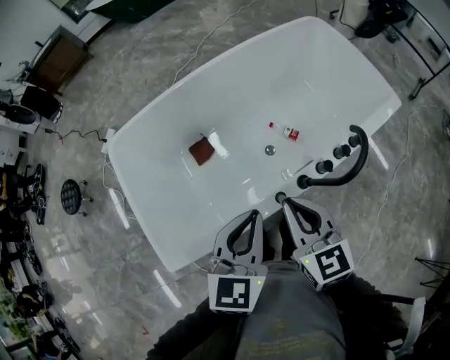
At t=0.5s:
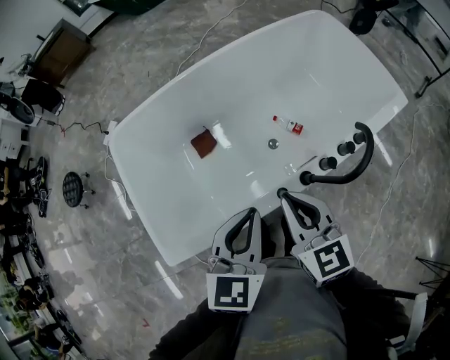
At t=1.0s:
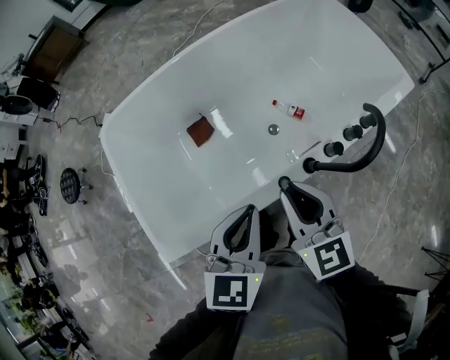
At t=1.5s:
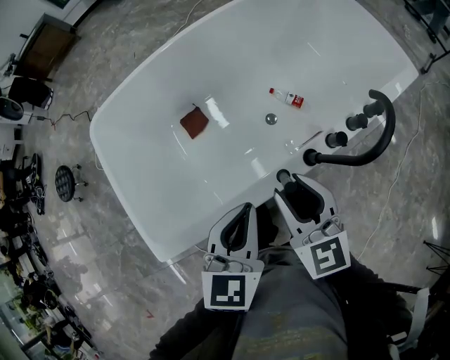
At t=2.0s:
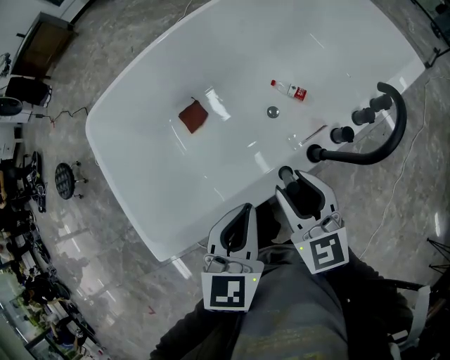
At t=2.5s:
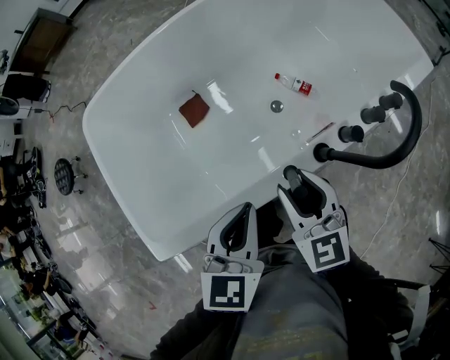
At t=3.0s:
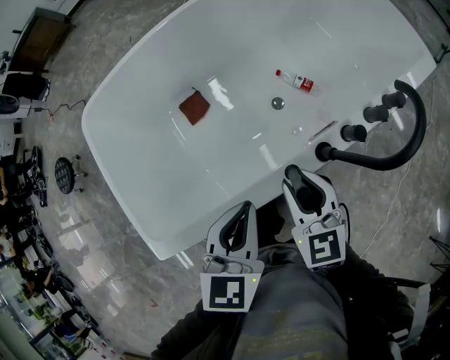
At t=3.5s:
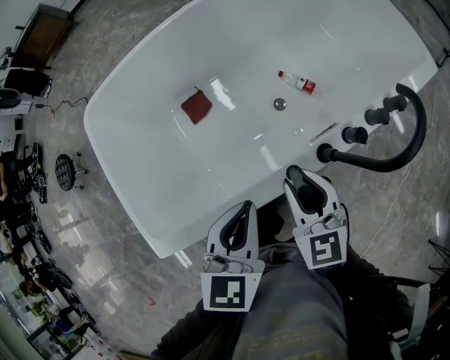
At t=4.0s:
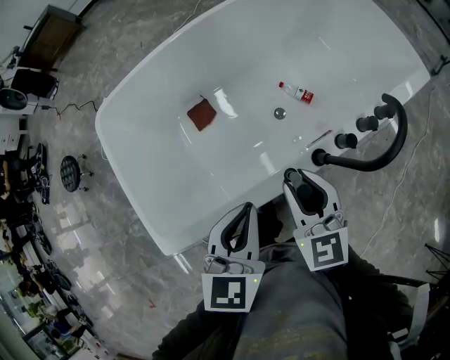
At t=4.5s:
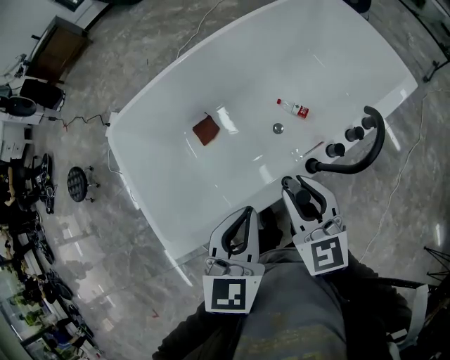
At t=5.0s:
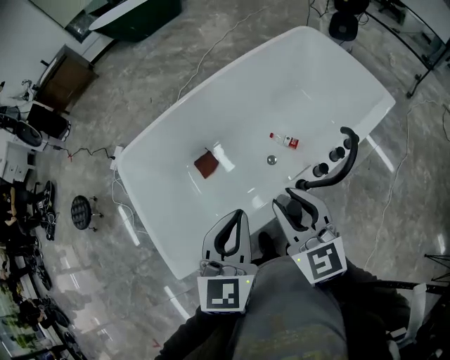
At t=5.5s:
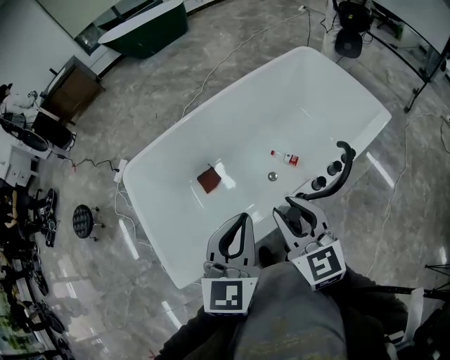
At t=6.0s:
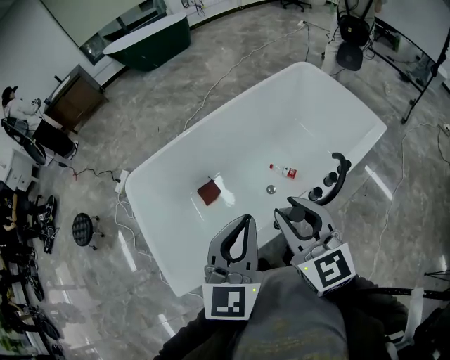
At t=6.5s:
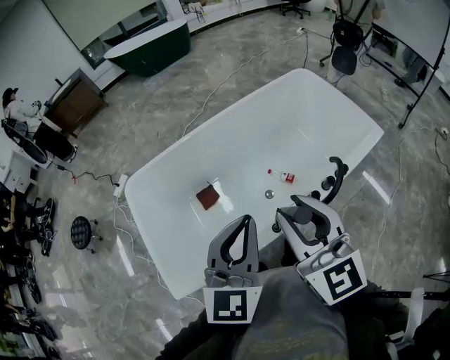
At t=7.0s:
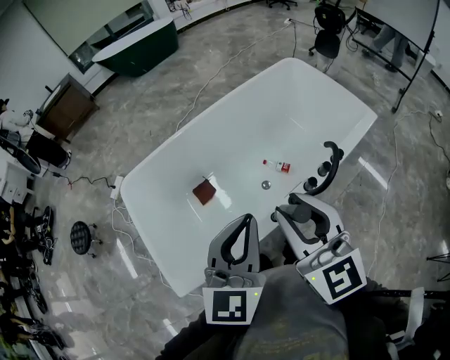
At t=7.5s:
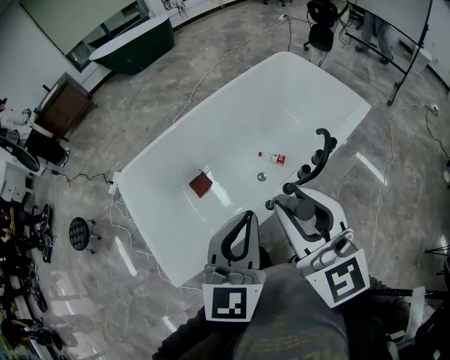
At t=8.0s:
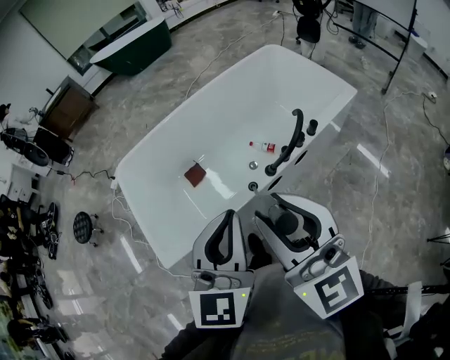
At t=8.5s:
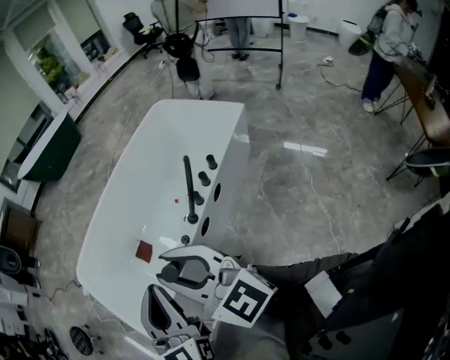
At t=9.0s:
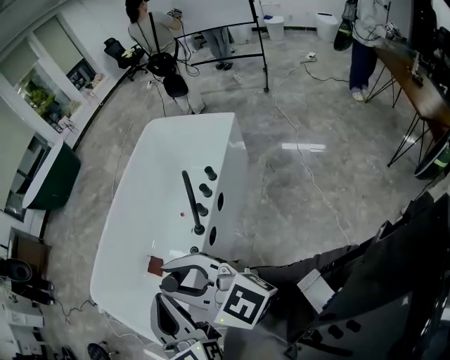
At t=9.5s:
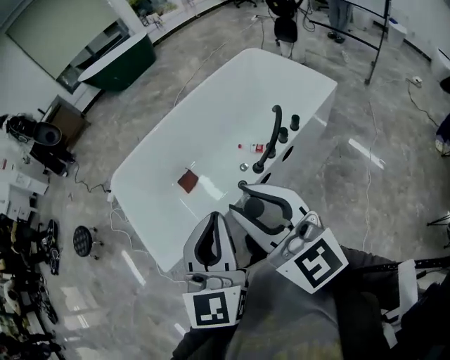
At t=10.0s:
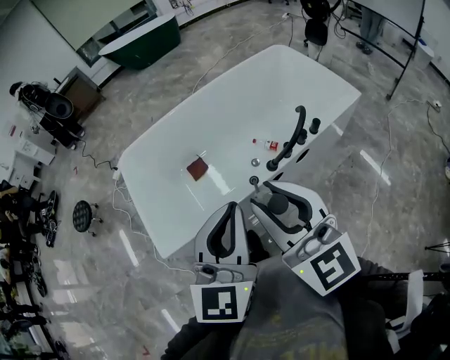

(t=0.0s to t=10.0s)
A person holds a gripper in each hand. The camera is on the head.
t=0.0s - t=2.0s: Both grippers move downward, about 15 cm. The right gripper opens its fingers.
t=2.0s - t=4.0s: The right gripper travels downward and back again, approximately 5 cm each way.
t=4.0s - t=6.0s: The grippers both shift upward by about 25 cm. The left gripper changes its angle by some 30 degrees.
t=6.0s - t=8.0s: The right gripper travels backward and upward by some 25 cm. Meanwhile the left gripper heads backward, covering approximately 20 cm.

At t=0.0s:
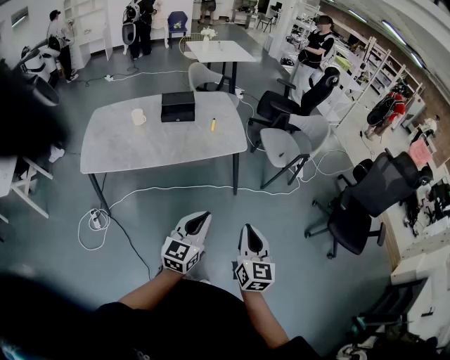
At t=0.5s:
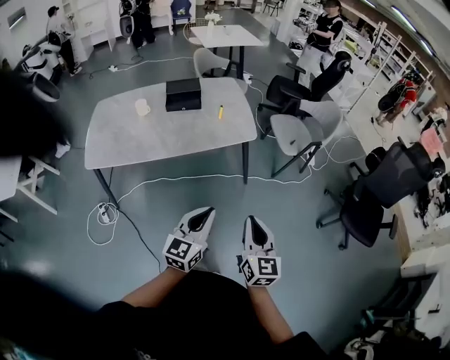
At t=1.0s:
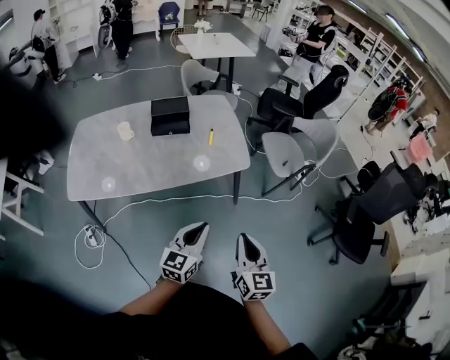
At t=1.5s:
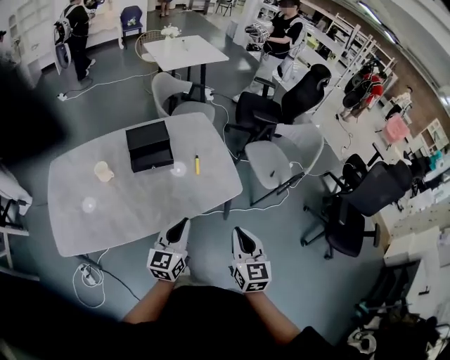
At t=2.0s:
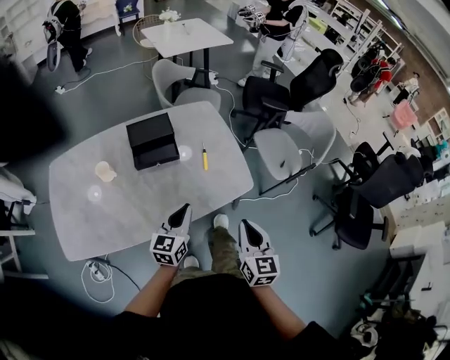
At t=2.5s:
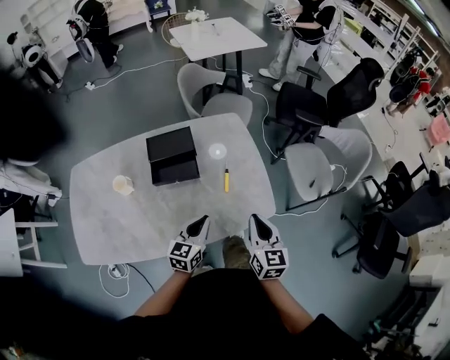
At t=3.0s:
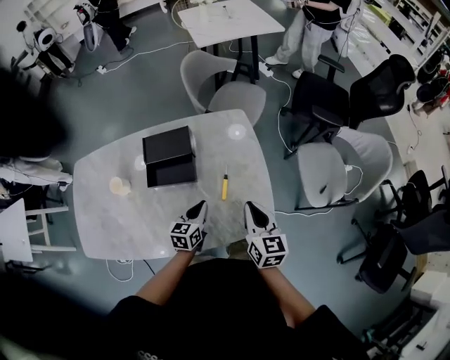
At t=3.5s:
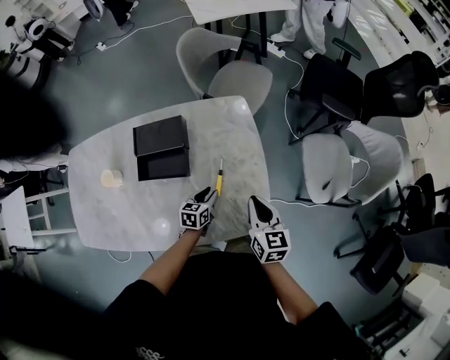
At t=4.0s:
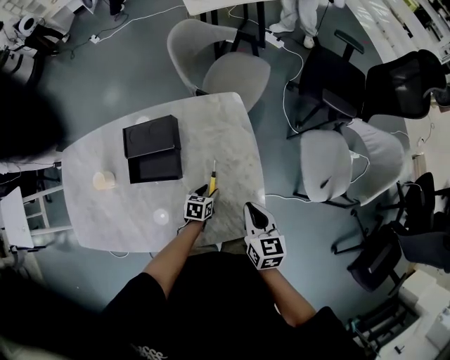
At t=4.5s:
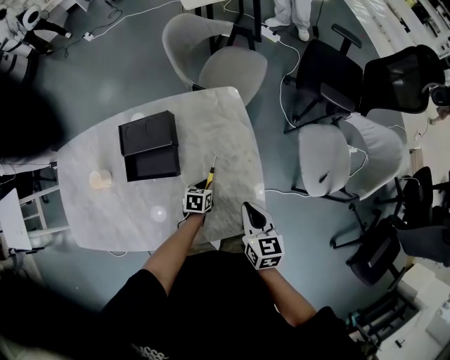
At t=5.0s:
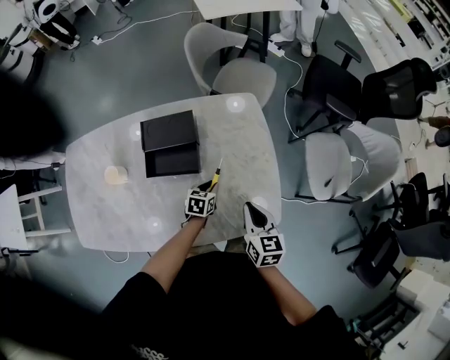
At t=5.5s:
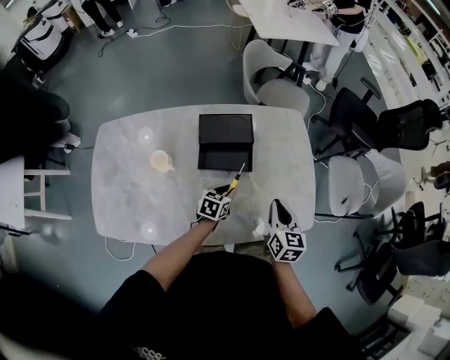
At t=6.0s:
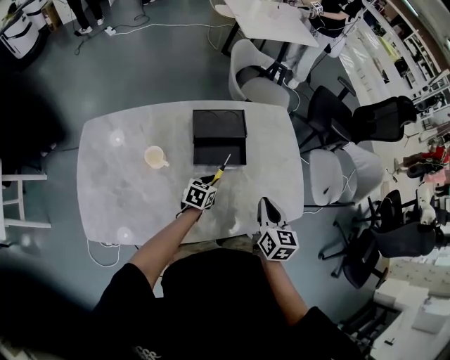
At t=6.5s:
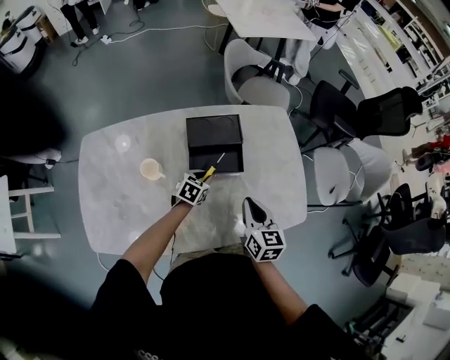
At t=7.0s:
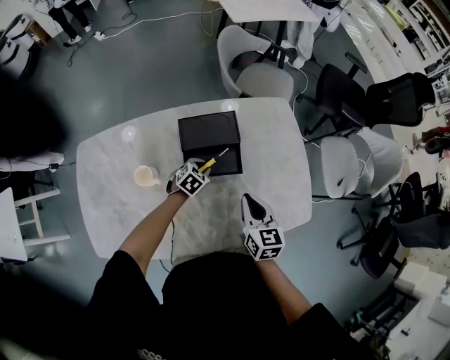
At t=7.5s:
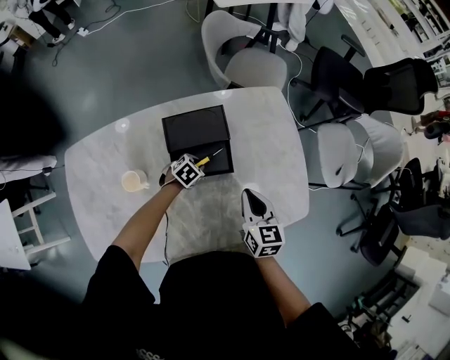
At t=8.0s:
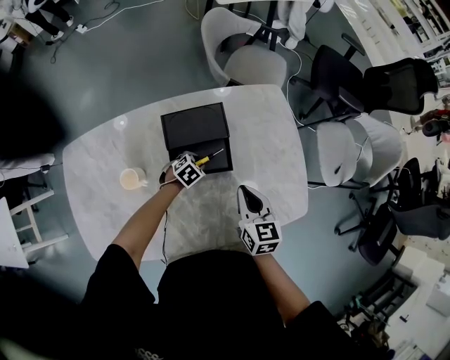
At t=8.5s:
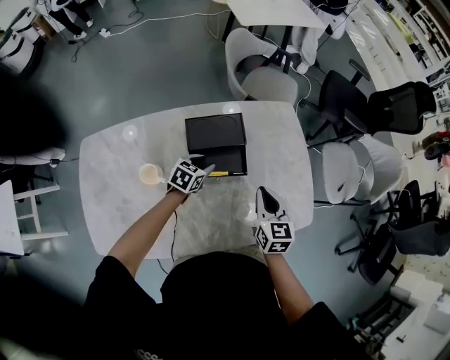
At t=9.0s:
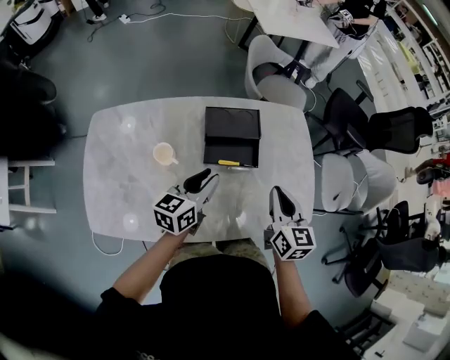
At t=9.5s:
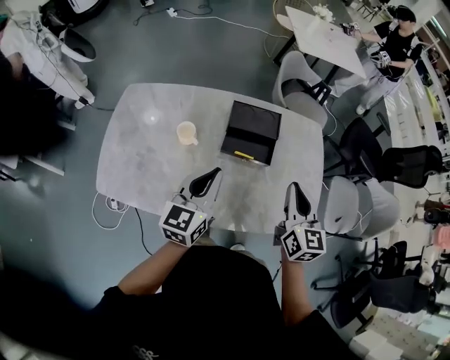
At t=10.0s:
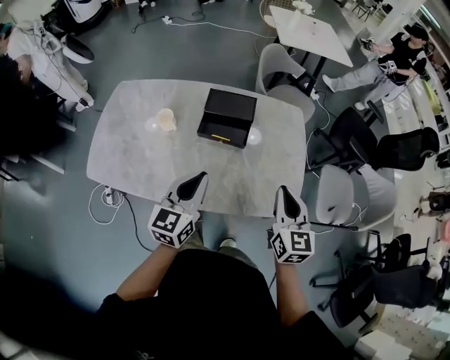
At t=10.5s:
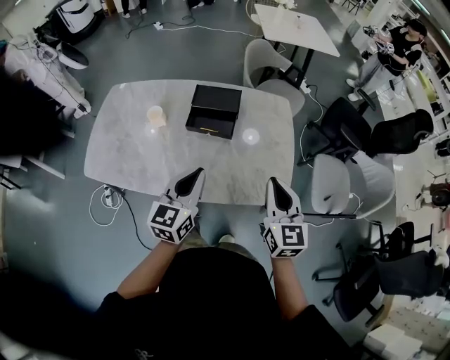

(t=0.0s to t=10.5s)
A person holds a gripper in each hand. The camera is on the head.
t=0.0s - t=2.0s: Both grippers are carried forward and to the left, some 50 cm.
t=2.0s - t=4.0s: The right gripper heads forward, covering some 40 cm, and changes its angle by some 30 degrees. The left gripper moves forward and downward, about 40 cm, angles its fingers downward, by approximately 50 degrees, and opens.
t=4.0s - t=6.5s: The left gripper goes approximately 30 cm to the left, rotates about 20 degrees, and closes its fingers. The right gripper goes roughly 35 cm to the left and backward.
t=6.5s - t=8.5s: Both grippers travel together forward, some 10 cm. The left gripper moves roughly 10 cm downward and comes back.
t=8.5s - t=10.5s: The right gripper changes place by some 30 cm, and changes its angle by about 20 degrees; the left gripper ends up about 40 cm from where it was, tips its fingers upward by approximately 30 degrees, and closes.

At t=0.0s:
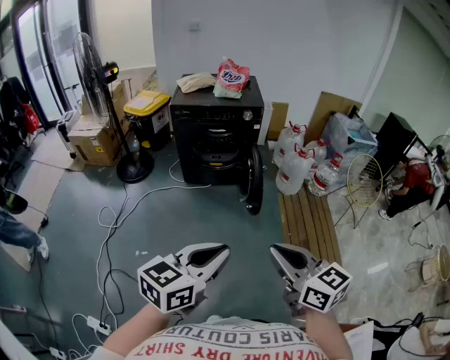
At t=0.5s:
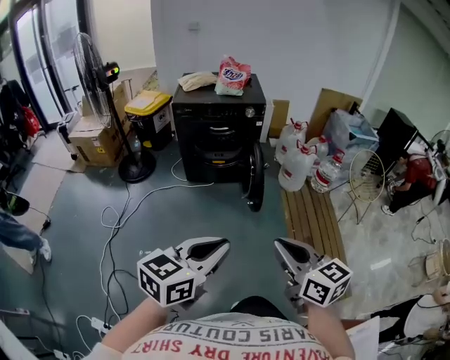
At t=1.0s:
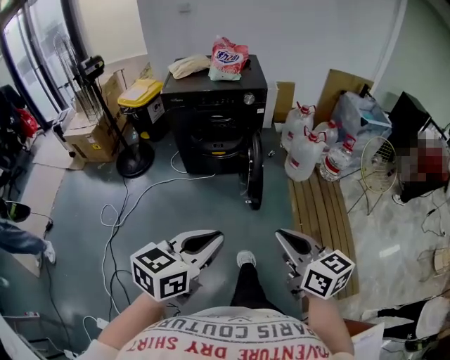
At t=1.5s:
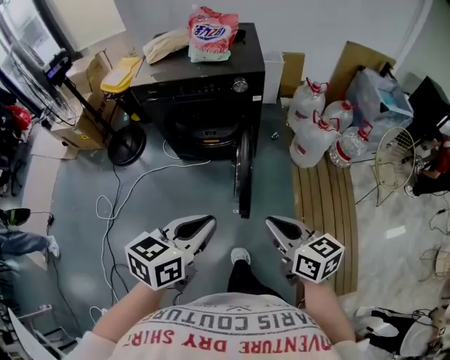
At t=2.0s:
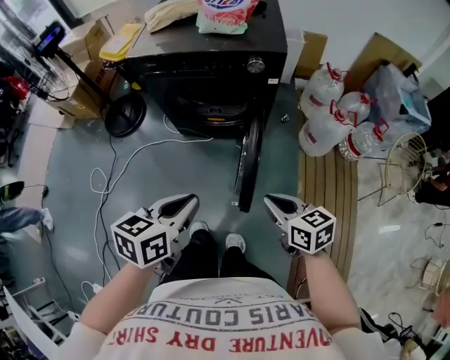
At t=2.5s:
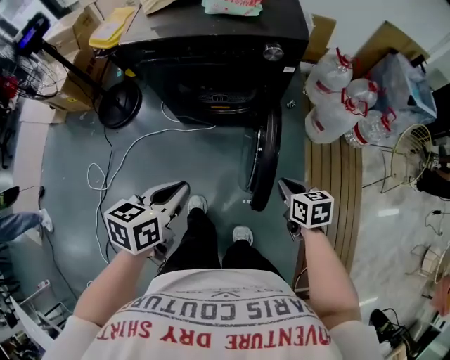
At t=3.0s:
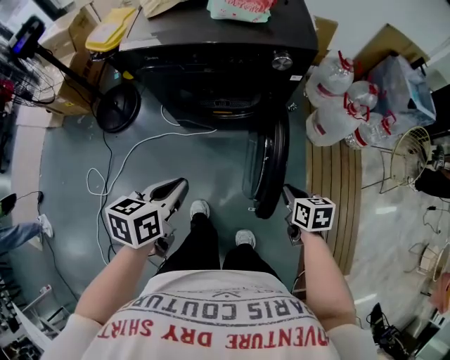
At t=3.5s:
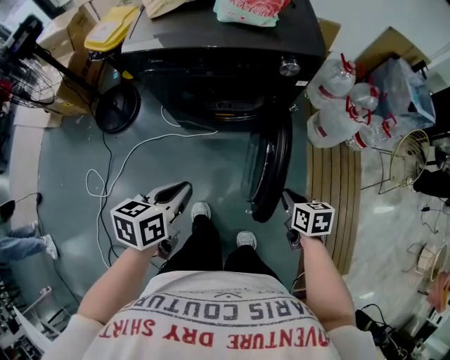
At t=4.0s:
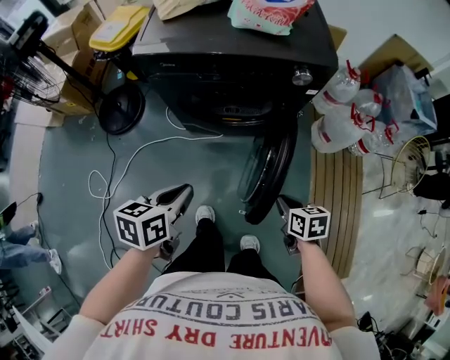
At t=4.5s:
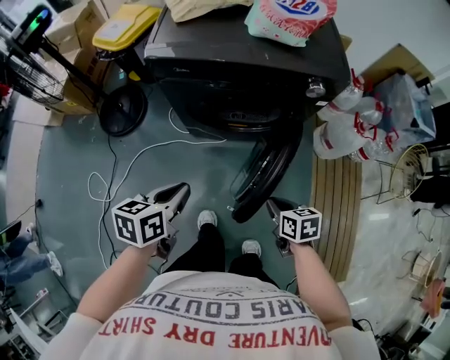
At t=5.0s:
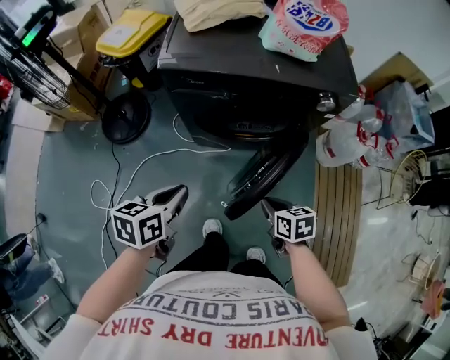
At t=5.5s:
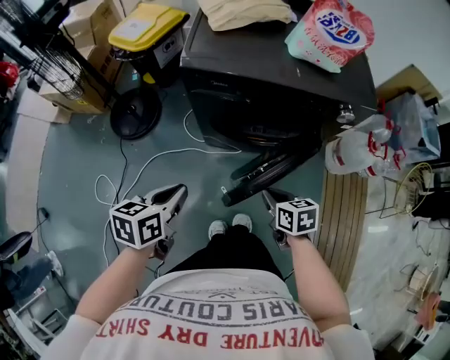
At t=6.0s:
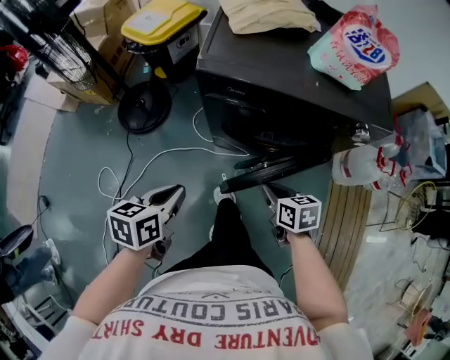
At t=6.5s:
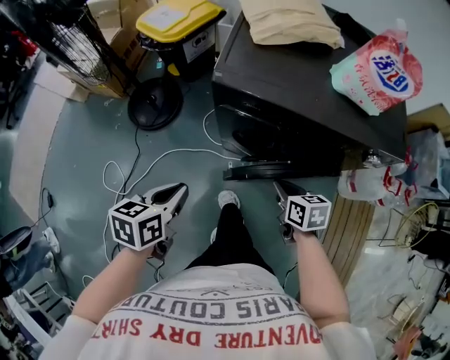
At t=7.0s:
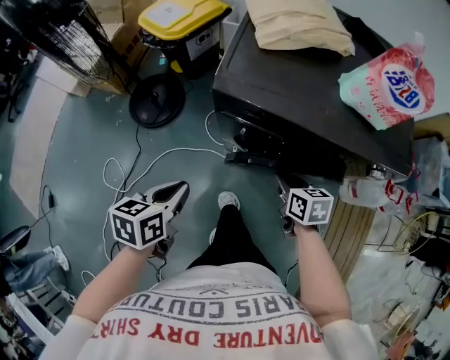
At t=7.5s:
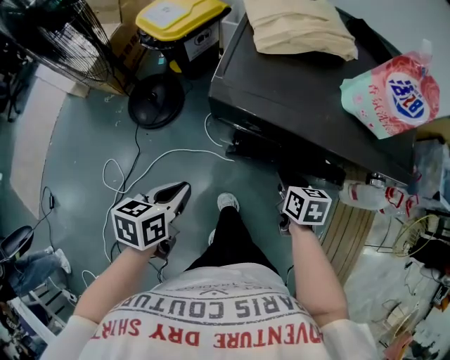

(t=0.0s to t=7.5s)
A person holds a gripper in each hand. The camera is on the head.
t=0.0s - t=2.0s: Both grippers travel together forward and downward, roughly 50 cm. The left gripper swivels approximately 30 degrees. Meanwhile the right gripper swivels some 30 degrees.
t=2.0s - t=4.0s: The right gripper goes about 15 cm downward, forward and to the left, and changes its angle by roughly 30 degrees, while the left gripper shifts roughly 20 cm to the left, forward and downward.
t=4.0s - t=5.5s: The grippers both shift to the left and forward by roughly 20 cm.
t=5.5s - t=7.5s: The right gripper moves forward, some 20 cm, while the left gripper shifts approximately 10 cm forward.
